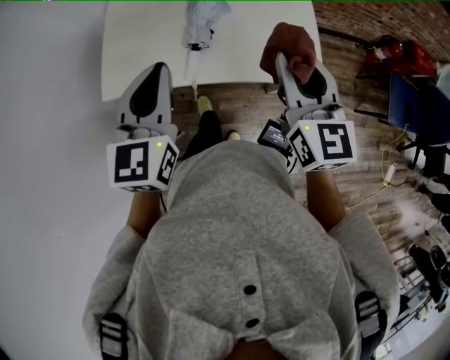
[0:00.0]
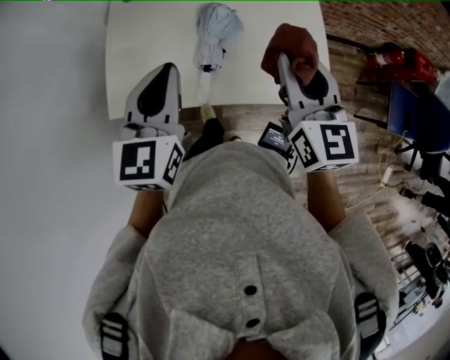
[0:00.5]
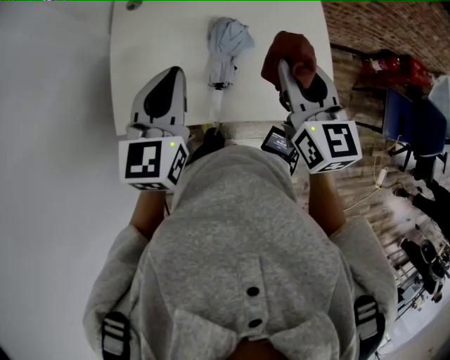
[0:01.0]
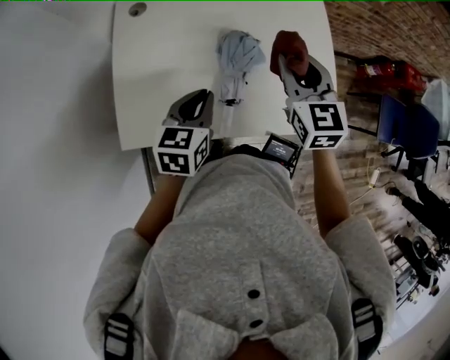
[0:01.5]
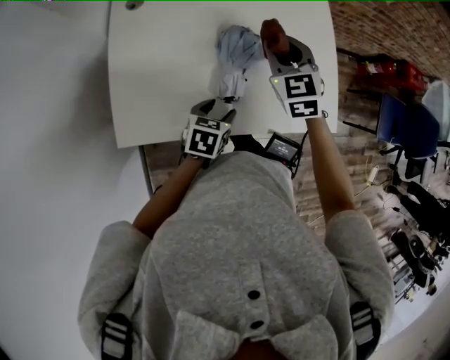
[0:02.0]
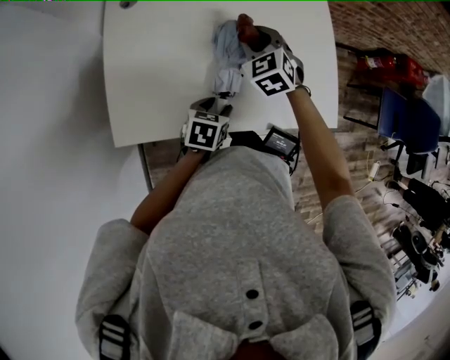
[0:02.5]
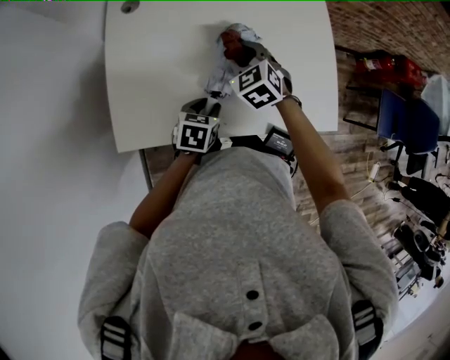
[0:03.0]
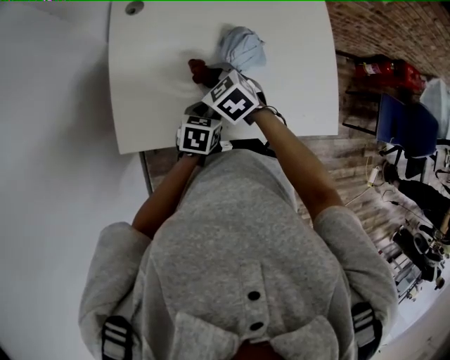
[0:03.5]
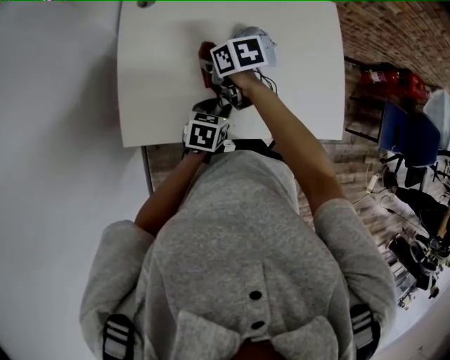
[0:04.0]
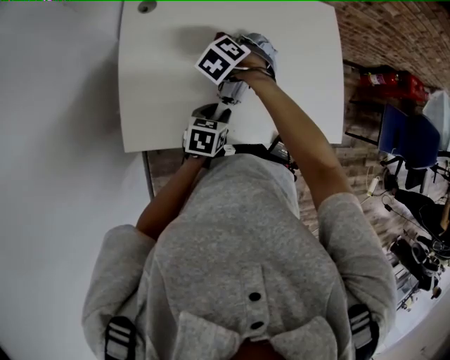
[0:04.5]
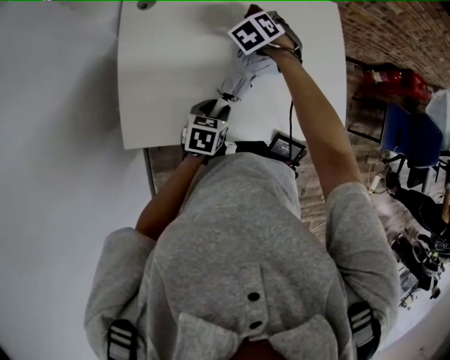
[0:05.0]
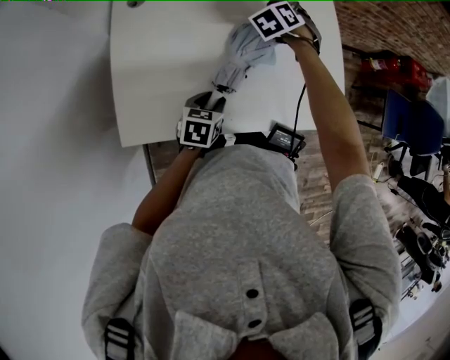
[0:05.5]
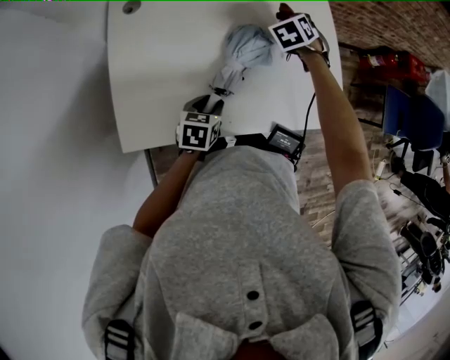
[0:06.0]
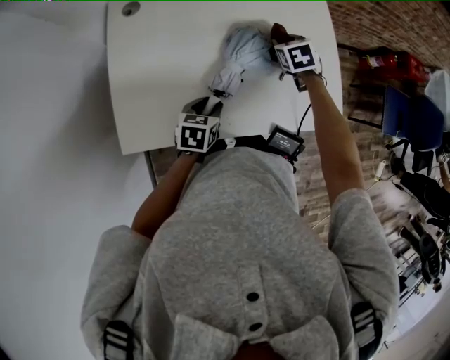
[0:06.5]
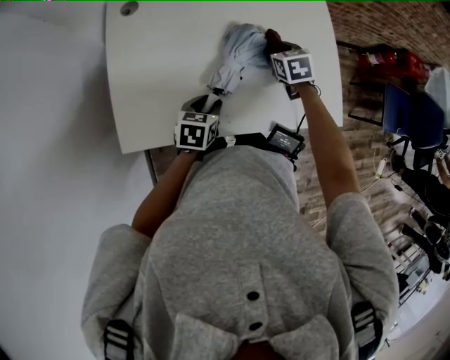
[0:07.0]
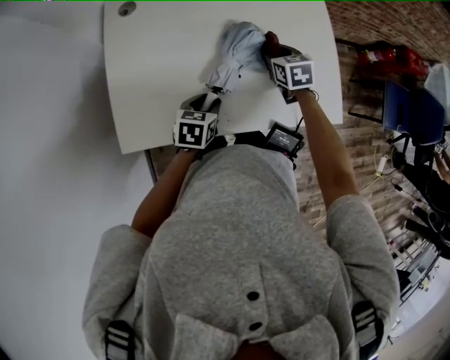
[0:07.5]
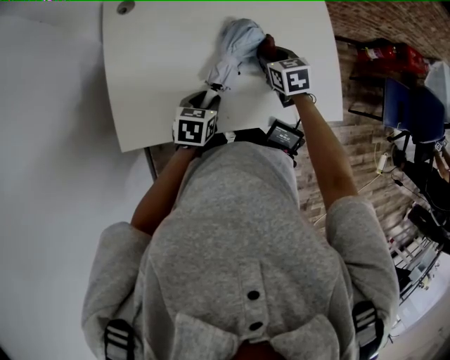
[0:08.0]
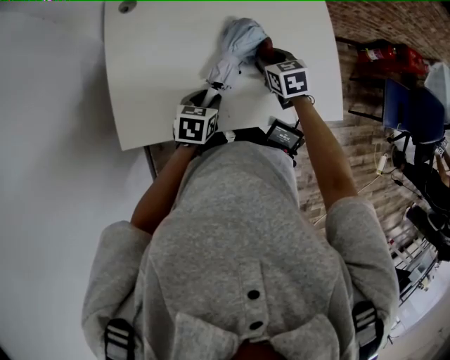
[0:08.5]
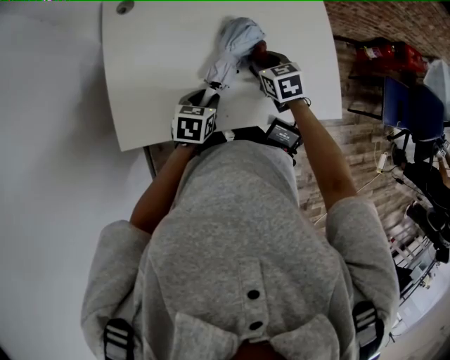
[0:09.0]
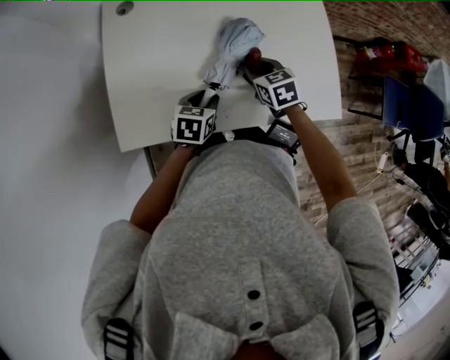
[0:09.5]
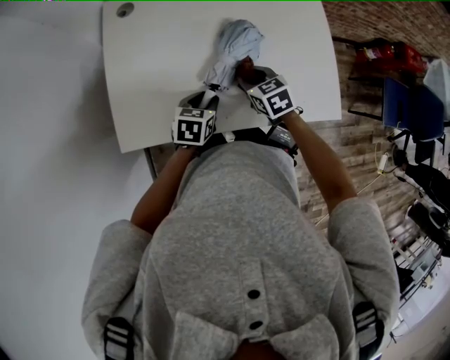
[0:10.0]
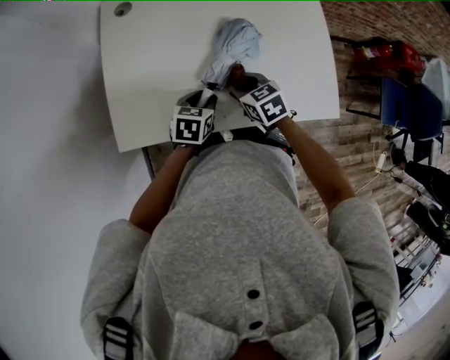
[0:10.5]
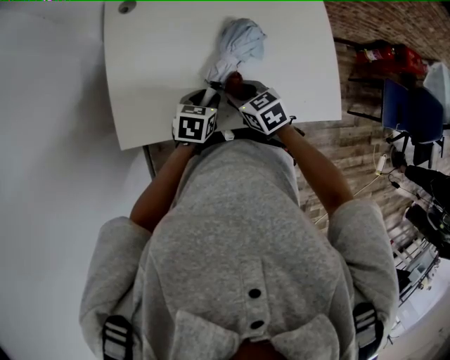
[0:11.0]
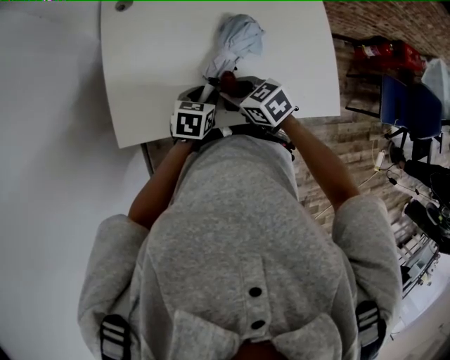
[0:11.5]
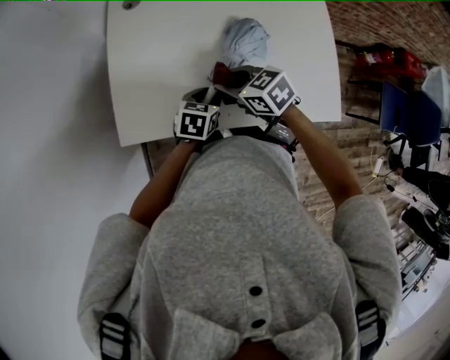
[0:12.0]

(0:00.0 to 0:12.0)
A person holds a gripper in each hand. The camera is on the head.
0:00.0 - 0:02.0: The right gripper shifts about 35 cm forward, to the left and downward, and rotates about 30 degrees; the left gripper travels downward and forward by about 30 cm, tips its fingers downward by about 40 degrees, and opens up.
0:02.0 - 0:04.0: The right gripper shifts by some 20 cm, and changes its angle by about 60 degrees. Meanwhile the left gripper closes up.
0:04.0 - 0:06.0: The right gripper ends up about 30 cm from where it was, and rotates about 60 degrees.
0:06.0 - 0:08.0: The right gripper travels backward by about 15 cm, and turns by some 40 degrees.
0:08.0 - 0:10.0: The right gripper moves backward and to the left, roughly 10 cm.
0:10.0 - 0:12.0: The right gripper shifts approximately 10 cm to the left and upward, and turns by about 20 degrees.

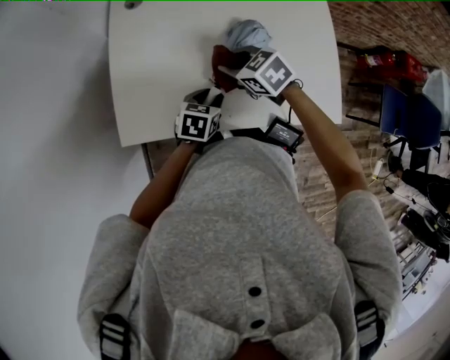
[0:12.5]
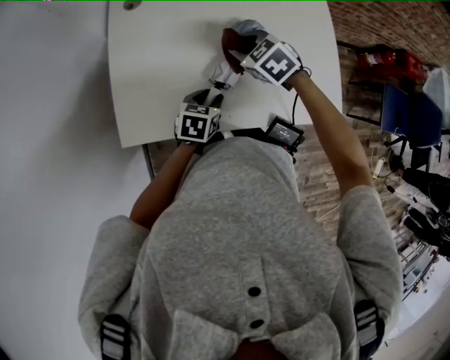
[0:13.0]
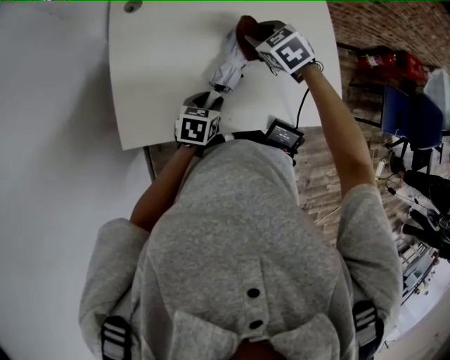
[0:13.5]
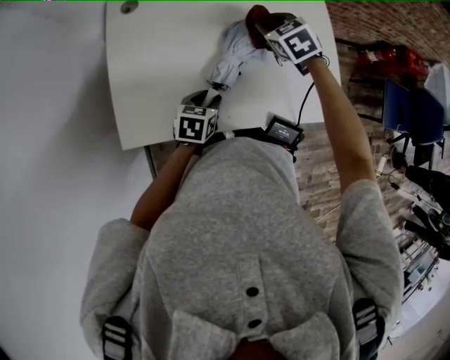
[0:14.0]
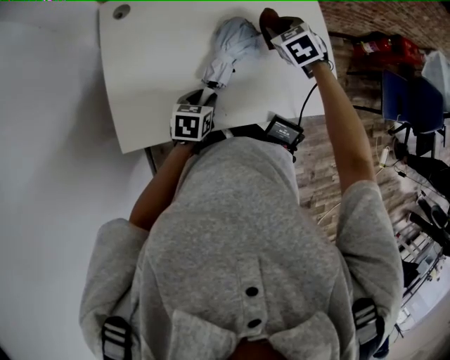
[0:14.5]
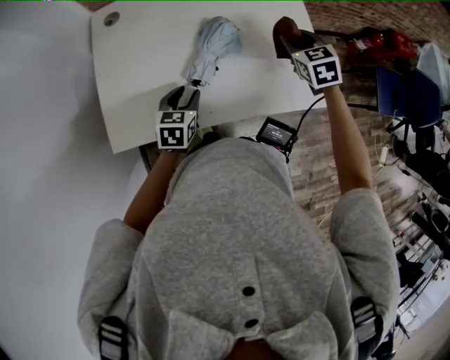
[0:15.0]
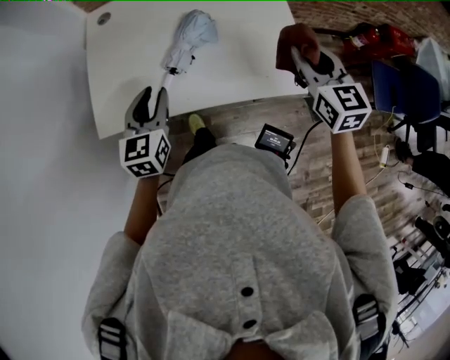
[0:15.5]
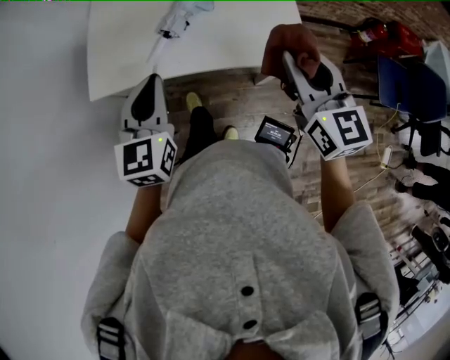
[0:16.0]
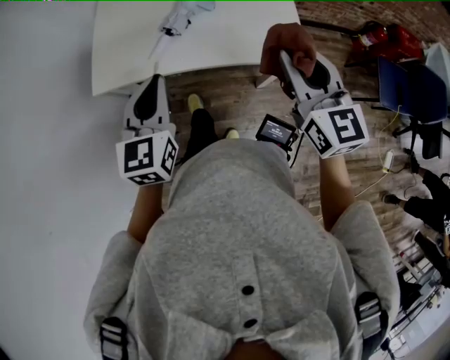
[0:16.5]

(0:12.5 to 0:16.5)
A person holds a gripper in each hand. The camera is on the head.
0:12.5 - 0:14.5: The right gripper changes place by approximately 20 cm, and swivels some 30 degrees.
0:14.5 - 0:16.5: The right gripper moves backward and upward, approximately 50 cm, and tips its fingers upward by some 40 degrees. The left gripper travels upward and backward by some 40 cm, points its fingers about 30 degrees further upward, and closes its fingers.

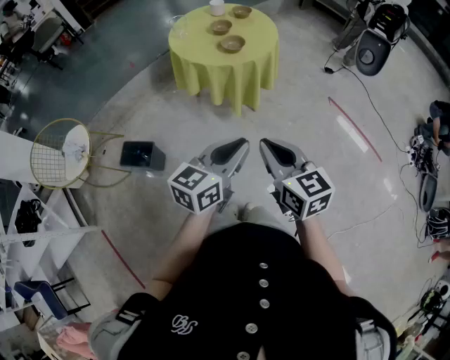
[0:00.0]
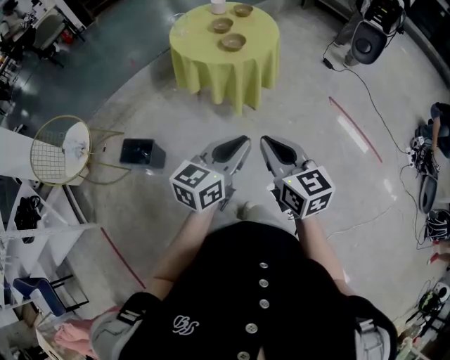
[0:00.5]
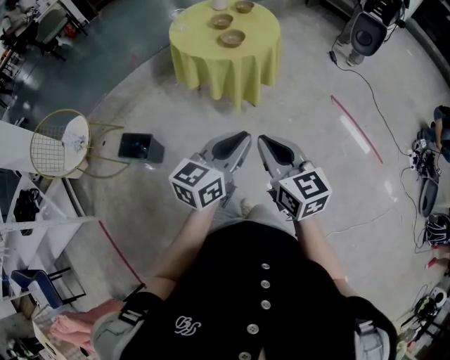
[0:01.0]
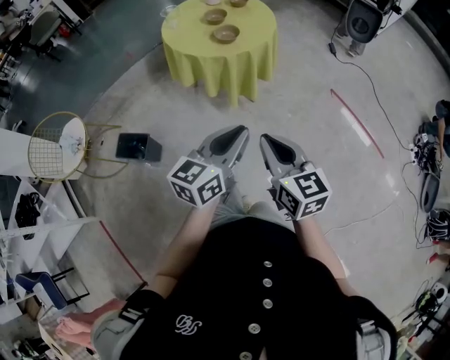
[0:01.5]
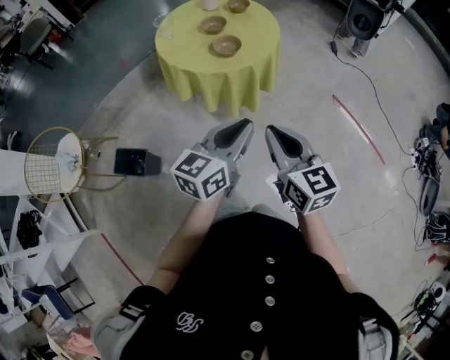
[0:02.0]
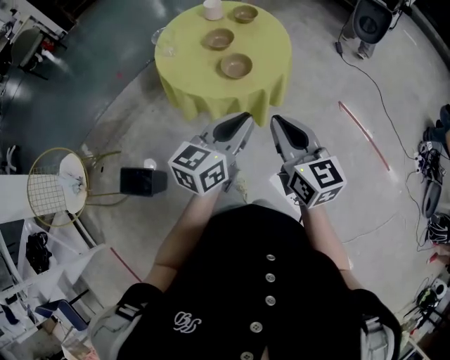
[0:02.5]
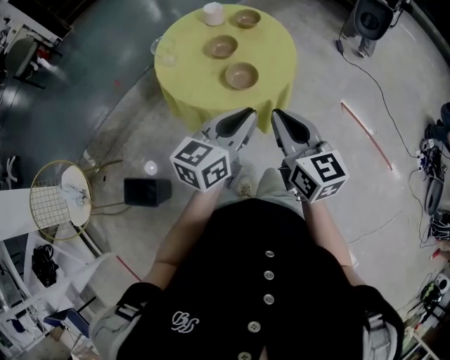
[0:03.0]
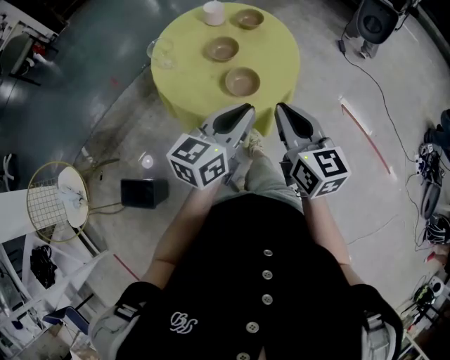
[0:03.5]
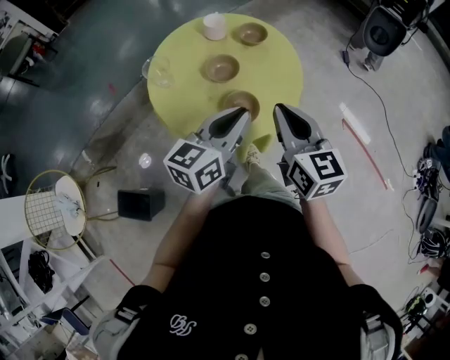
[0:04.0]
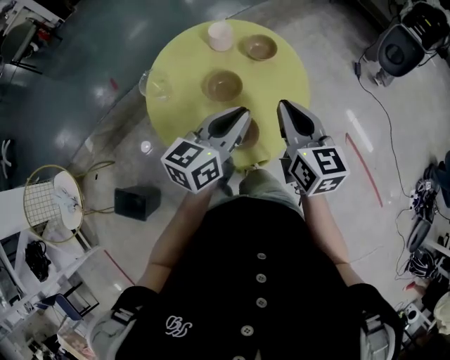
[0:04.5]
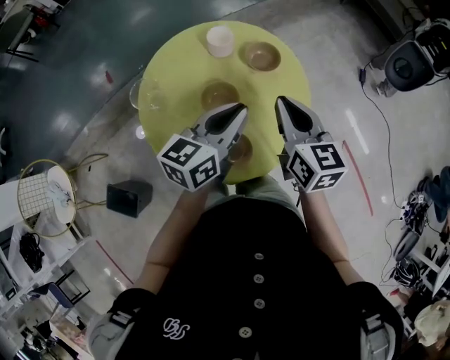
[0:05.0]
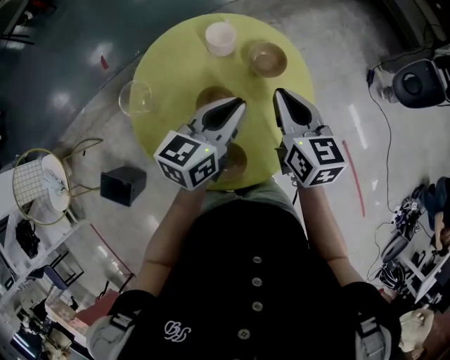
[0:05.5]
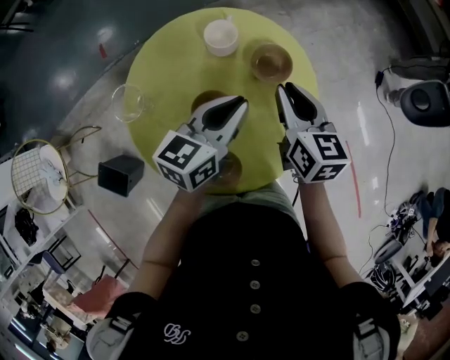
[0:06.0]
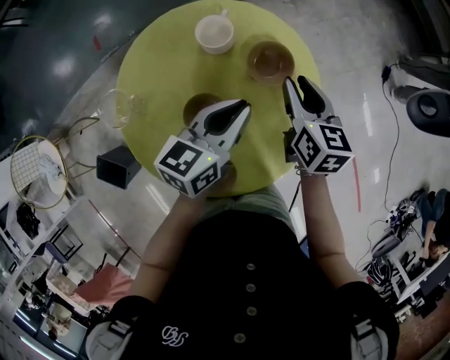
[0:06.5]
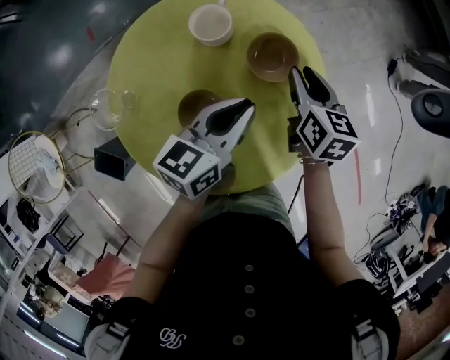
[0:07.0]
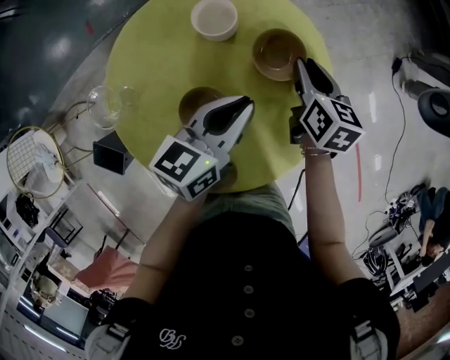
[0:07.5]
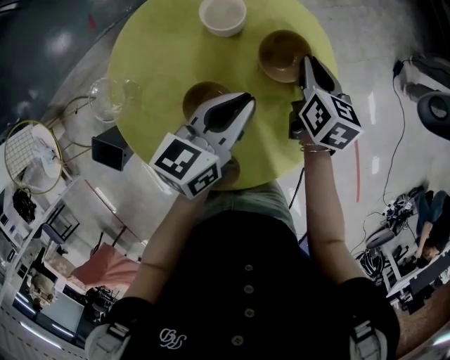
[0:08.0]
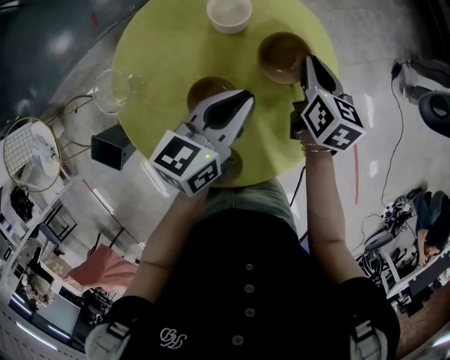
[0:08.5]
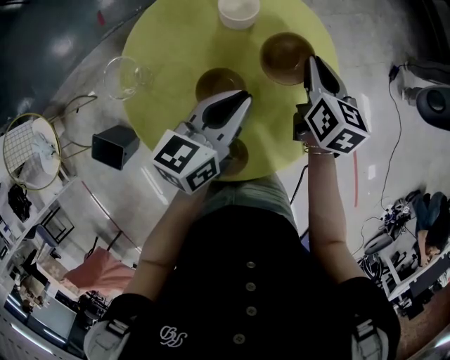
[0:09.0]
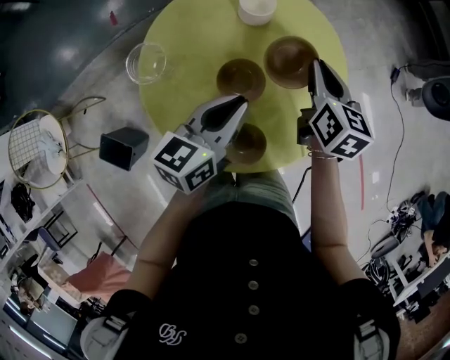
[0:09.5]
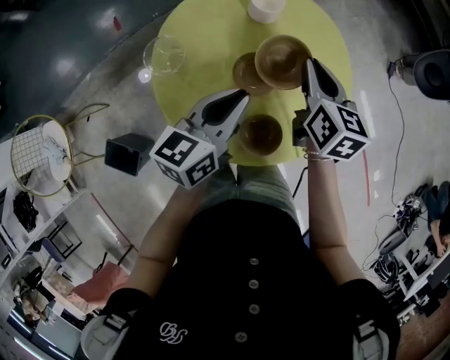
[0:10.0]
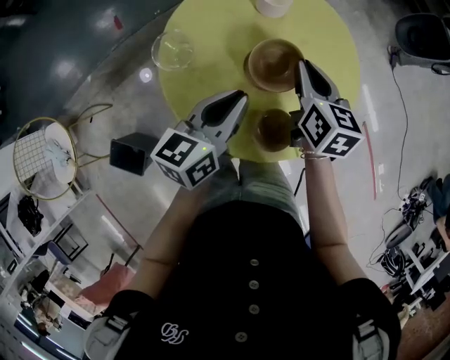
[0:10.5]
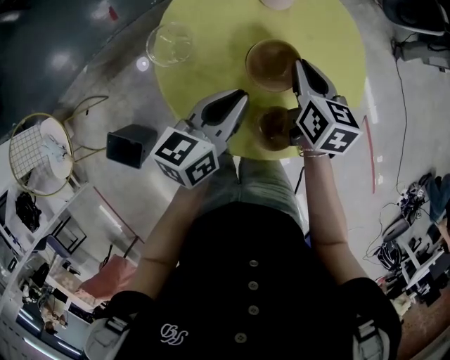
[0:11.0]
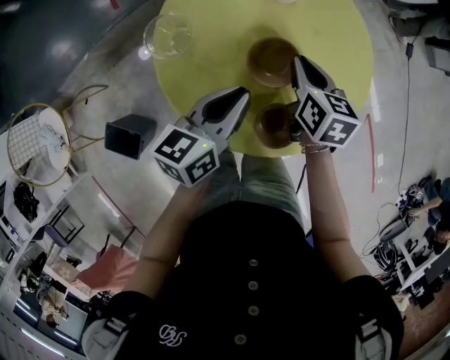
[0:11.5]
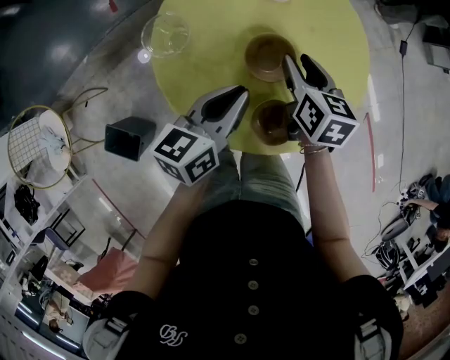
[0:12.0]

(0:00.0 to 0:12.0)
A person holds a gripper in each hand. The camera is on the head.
0:00.0 - 0:02.0: Both grippers move forward, some 15 cm.
0:02.0 - 0:04.0: The grippers both shift forward by some 35 cm.
0:04.0 - 0:06.0: Both grippers travel together forward, about 30 cm.
0:06.0 - 0:08.0: The right gripper heads downward and forward, covering roughly 15 cm, while the left gripper travels downward by about 5 cm.
0:08.0 - 0:10.0: The left gripper heads backward, to the left and upward, covering approximately 15 cm, while the right gripper moves backward, upward and to the left, roughly 20 cm.
0:10.0 - 0:12.0: The right gripper moves downward, about 10 cm, and opens up; the left gripper moves some 5 cm.
